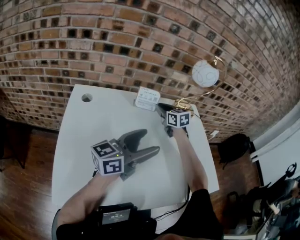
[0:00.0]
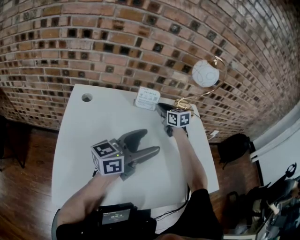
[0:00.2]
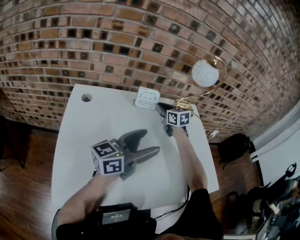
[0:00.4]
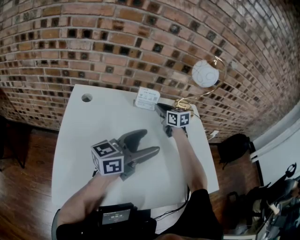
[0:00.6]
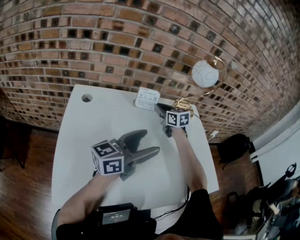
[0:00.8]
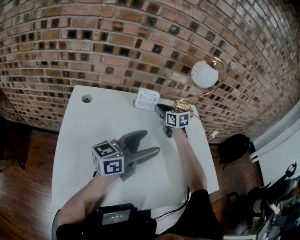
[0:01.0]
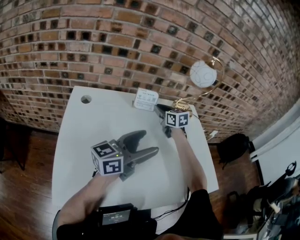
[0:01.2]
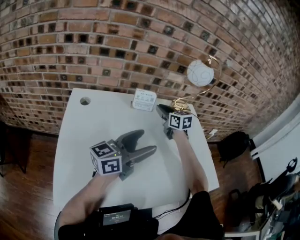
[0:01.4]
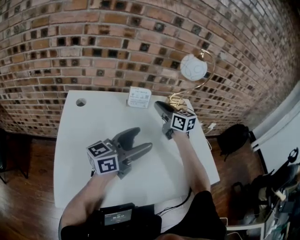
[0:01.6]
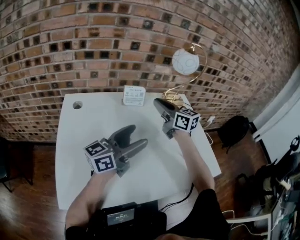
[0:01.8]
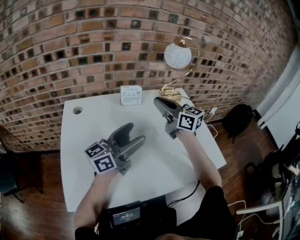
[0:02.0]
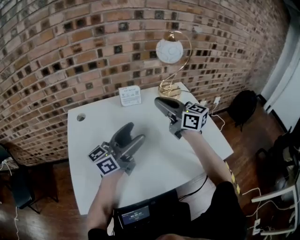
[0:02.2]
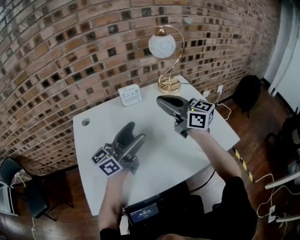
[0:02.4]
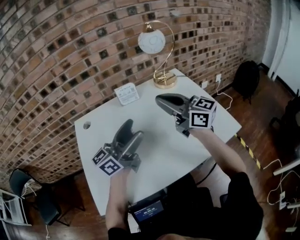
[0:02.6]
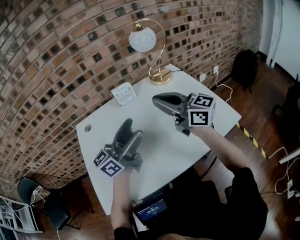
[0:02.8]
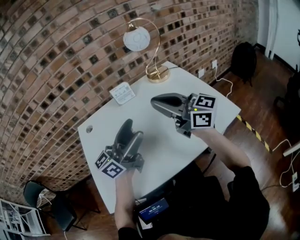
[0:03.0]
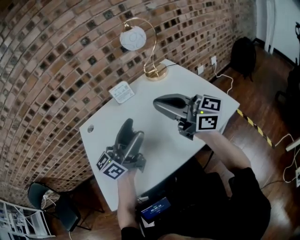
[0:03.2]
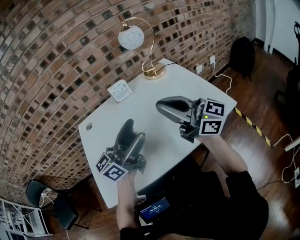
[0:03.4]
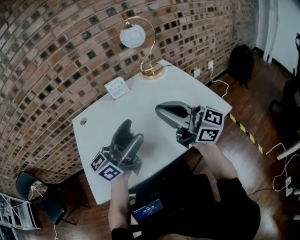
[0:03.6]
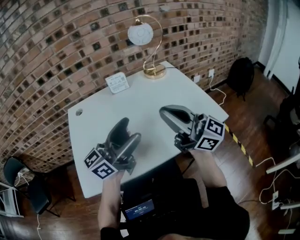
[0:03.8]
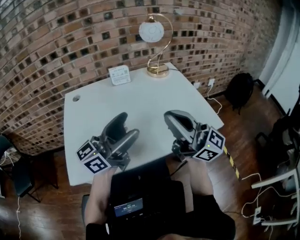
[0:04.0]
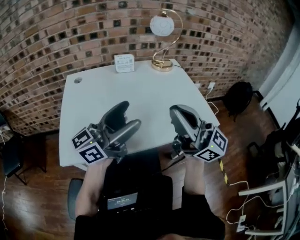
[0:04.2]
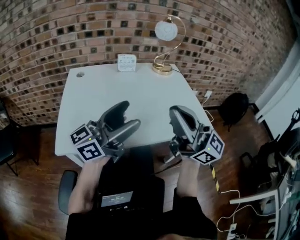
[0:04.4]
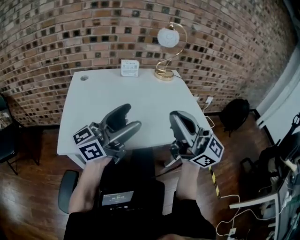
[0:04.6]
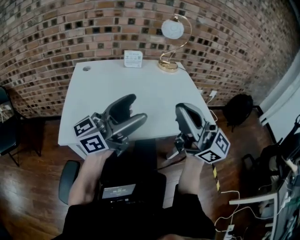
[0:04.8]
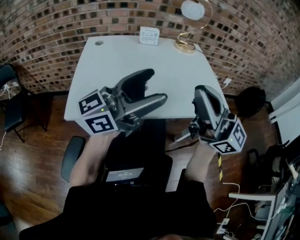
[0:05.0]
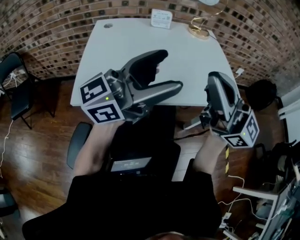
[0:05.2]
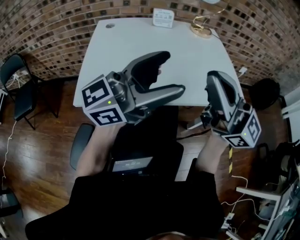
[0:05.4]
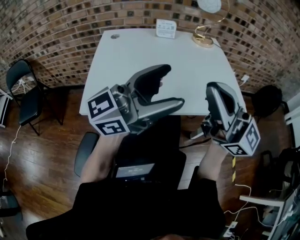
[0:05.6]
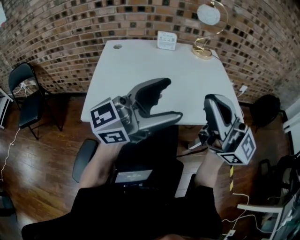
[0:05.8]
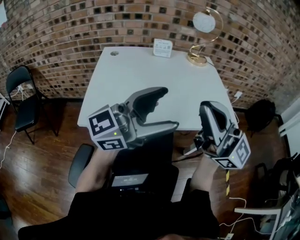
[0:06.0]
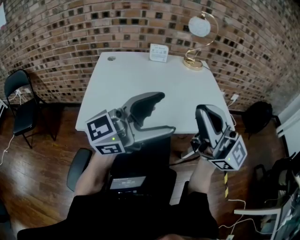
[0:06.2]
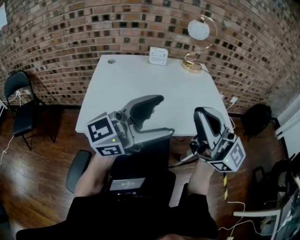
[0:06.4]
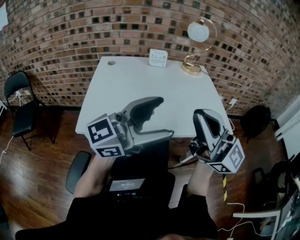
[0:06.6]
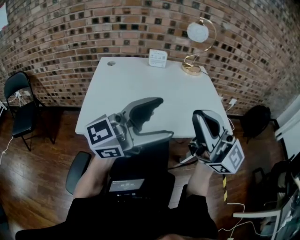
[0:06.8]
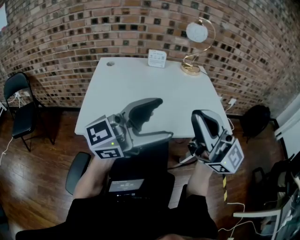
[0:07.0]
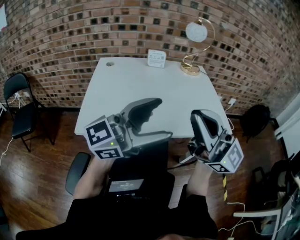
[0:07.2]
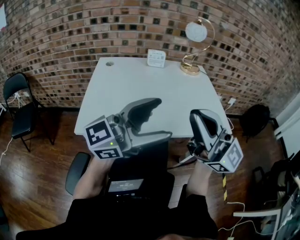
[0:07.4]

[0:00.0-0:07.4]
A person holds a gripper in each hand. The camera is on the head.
0:00.0 to 0:01.4: The grippers stay close to where they were, moving slightly.
0:01.4 to 0:03.0: The left gripper is displaced backward and upward by approximately 10 cm, while the right gripper goes roughly 35 cm backward and upward, and angles its fingers upward, by some 40 degrees.
0:03.0 to 0:04.4: Both grippers travel together backward, some 15 cm.
0:04.4 to 0:06.0: The right gripper shifts by approximately 5 cm. The left gripper ends up roughly 10 cm from where it was.
0:06.0 to 0:07.4: The two grippers keep their place.

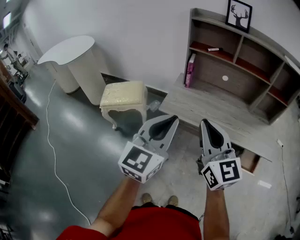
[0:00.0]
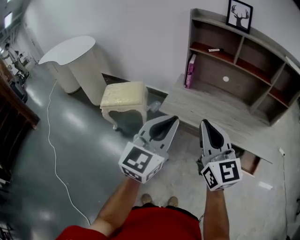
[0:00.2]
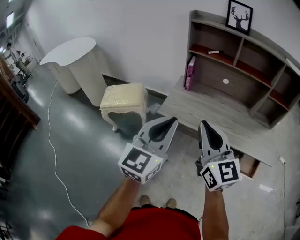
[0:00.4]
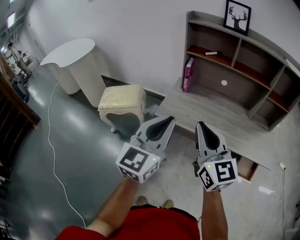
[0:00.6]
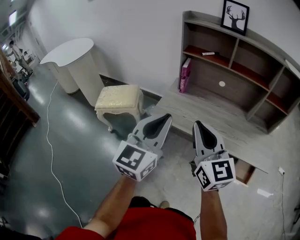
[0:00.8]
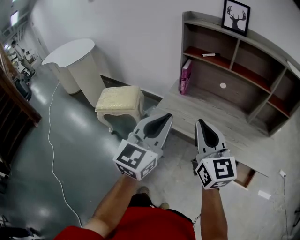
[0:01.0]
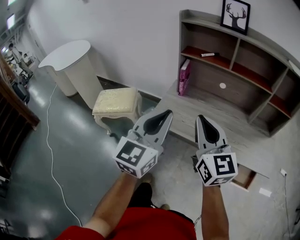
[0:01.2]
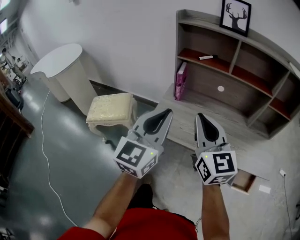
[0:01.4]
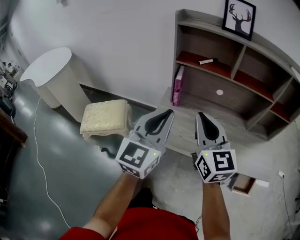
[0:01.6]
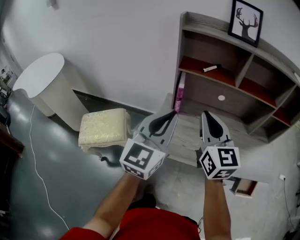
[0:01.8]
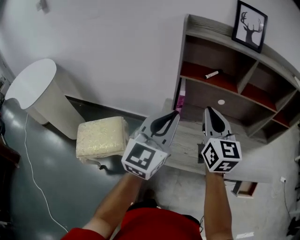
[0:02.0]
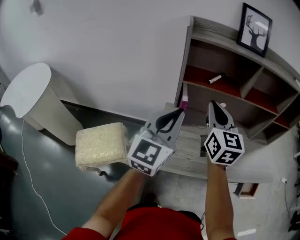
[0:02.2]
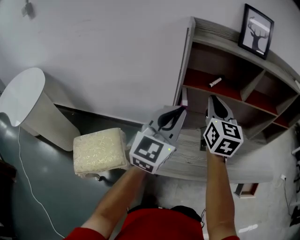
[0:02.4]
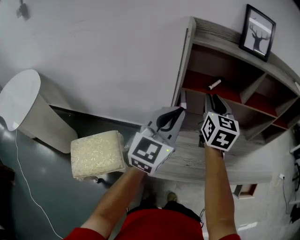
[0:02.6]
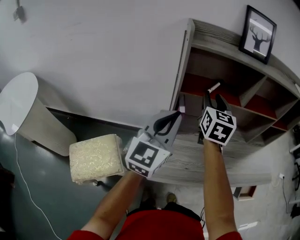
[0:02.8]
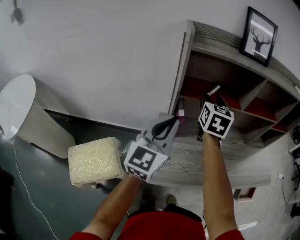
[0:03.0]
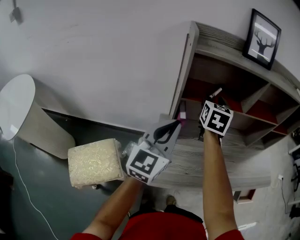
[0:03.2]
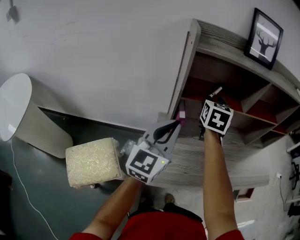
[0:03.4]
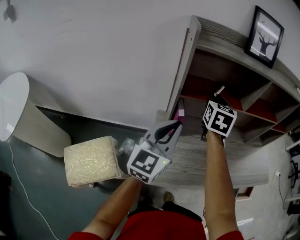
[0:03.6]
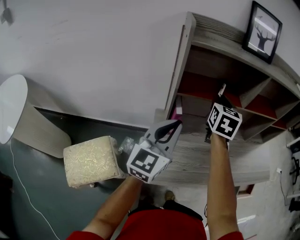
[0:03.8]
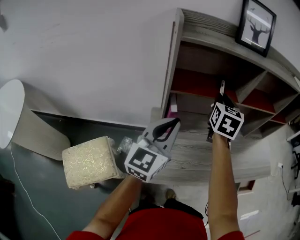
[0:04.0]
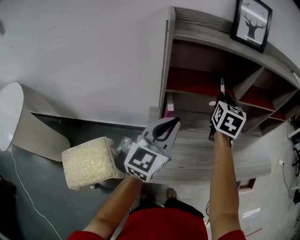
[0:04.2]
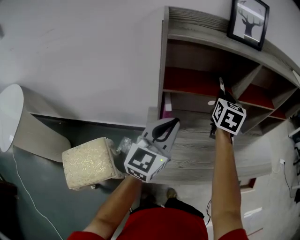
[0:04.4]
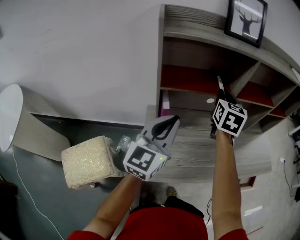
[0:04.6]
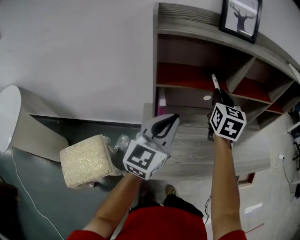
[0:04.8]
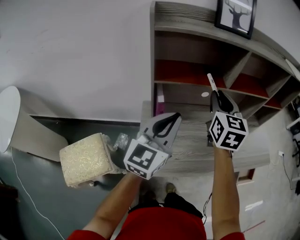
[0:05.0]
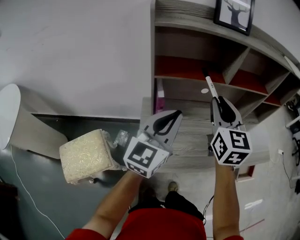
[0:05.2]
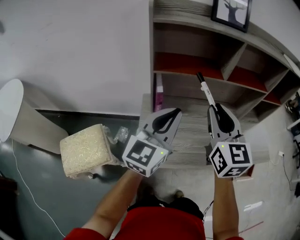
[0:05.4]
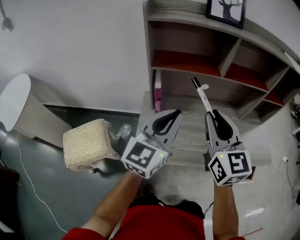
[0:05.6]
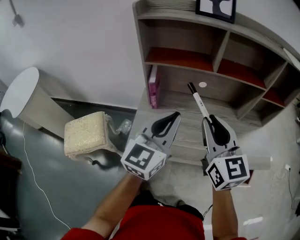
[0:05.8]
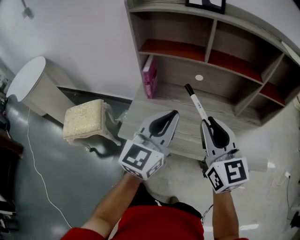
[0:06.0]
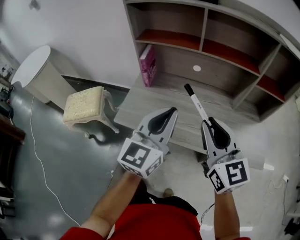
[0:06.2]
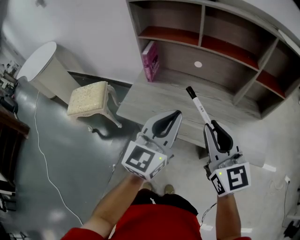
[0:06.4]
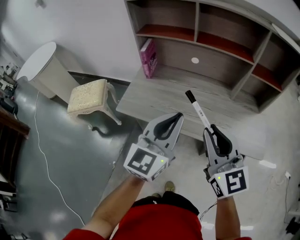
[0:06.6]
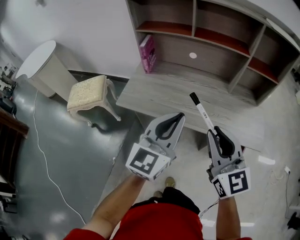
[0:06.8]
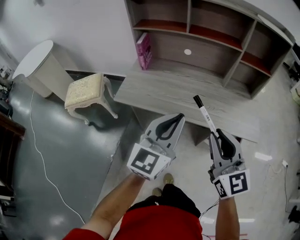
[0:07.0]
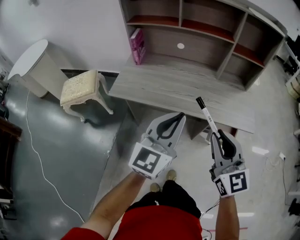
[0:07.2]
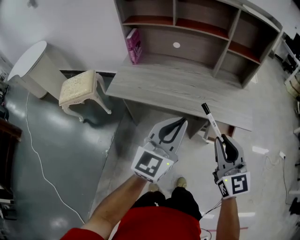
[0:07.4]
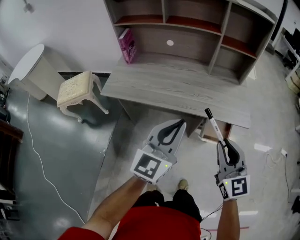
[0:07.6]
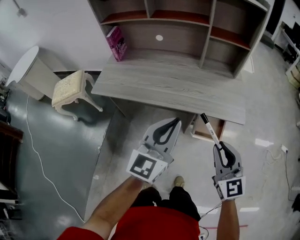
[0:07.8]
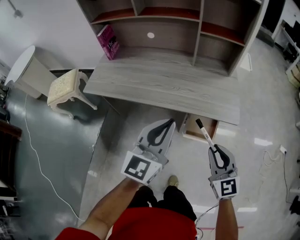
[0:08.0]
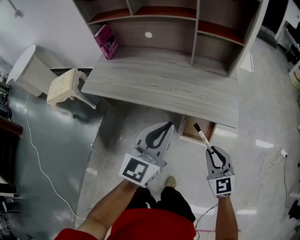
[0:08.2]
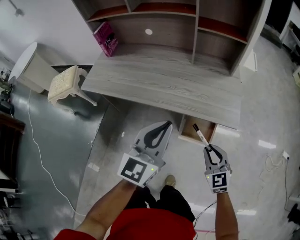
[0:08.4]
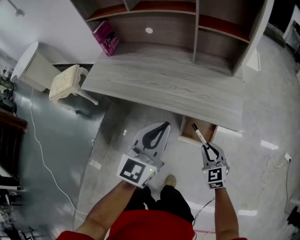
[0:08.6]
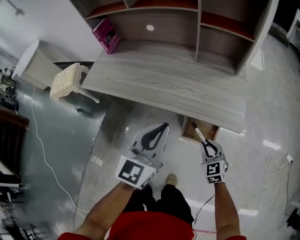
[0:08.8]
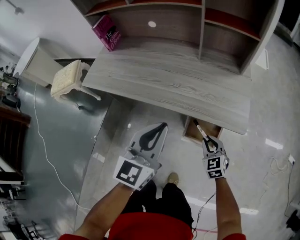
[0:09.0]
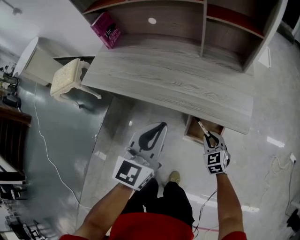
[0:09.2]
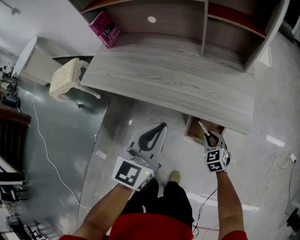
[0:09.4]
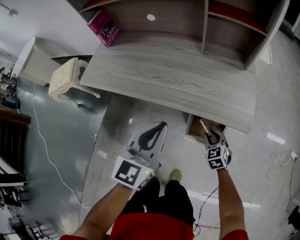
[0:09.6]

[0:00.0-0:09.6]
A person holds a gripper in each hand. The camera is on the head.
0:00.0 to 0:01.6: Both grippers move forward, about 20 cm.
0:01.6 to 0:03.2: The left gripper moves roughly 25 cm. Meanwhile the right gripper ends up roughly 35 cm from where it was, changes its angle by roughly 40 degrees, and opens.
0:03.2 to 0:04.8: The left gripper goes some 5 cm to the right. The right gripper goes some 10 cm to the right, and closes its fingers.
0:04.8 to 0:06.4: The left gripper ends up about 30 cm from where it was; the right gripper moves roughly 40 cm, and swivels approximately 50 degrees.
0:06.4 to 0:08.0: The left gripper travels to the right and backward by approximately 30 cm; the right gripper shifts about 40 cm to the right, backward and downward.
0:08.0 to 0:09.6: The left gripper travels downward and forward by approximately 10 cm. The right gripper is displaced downward and forward by approximately 30 cm, and turns by approximately 30 degrees.

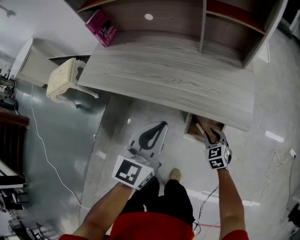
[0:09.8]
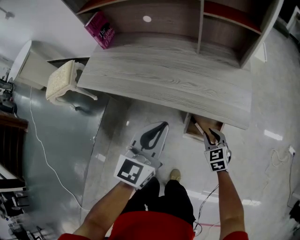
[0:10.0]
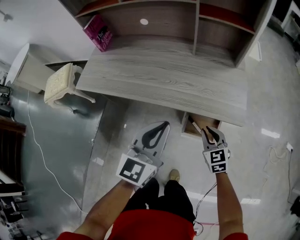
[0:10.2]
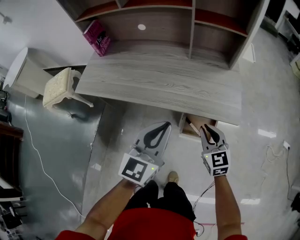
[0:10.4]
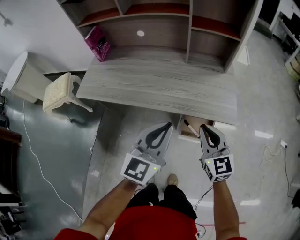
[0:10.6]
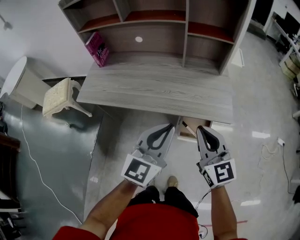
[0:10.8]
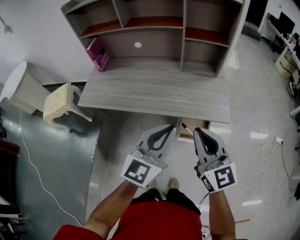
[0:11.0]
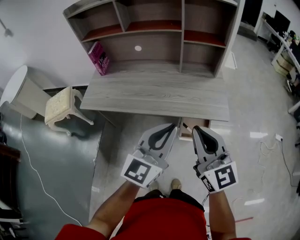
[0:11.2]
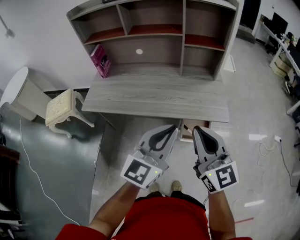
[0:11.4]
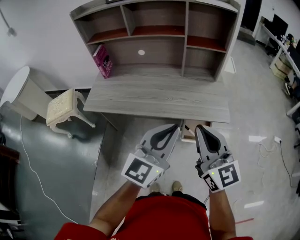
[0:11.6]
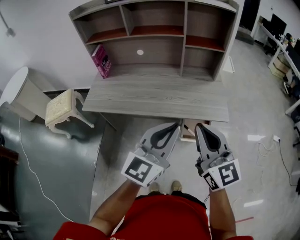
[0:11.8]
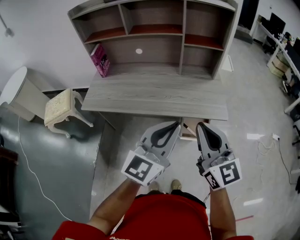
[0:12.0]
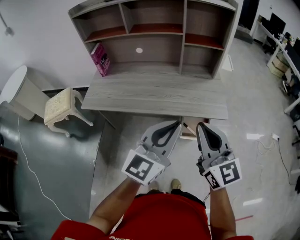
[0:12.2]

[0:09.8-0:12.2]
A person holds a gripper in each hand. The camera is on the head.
0:09.8 to 0:11.0: The right gripper is displaced upward by about 40 cm, points its fingers about 40 degrees further upward, and closes up. The left gripper shifts about 10 cm upward and backward.
0:11.0 to 0:12.2: Both grippers travel together upward, some 5 cm.

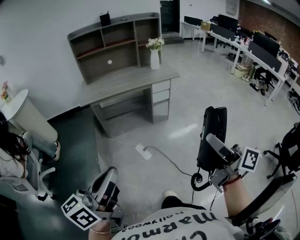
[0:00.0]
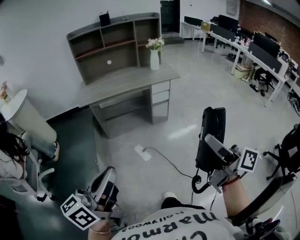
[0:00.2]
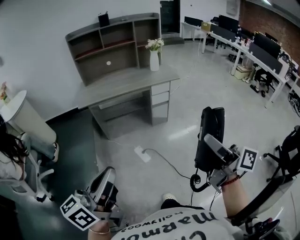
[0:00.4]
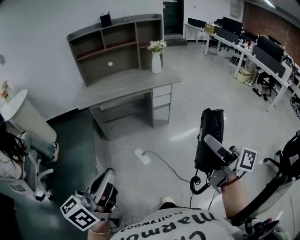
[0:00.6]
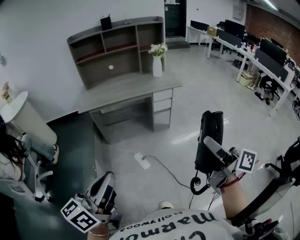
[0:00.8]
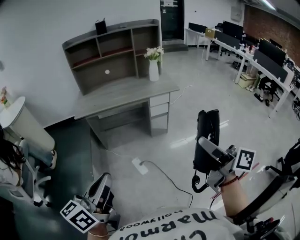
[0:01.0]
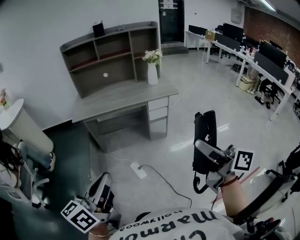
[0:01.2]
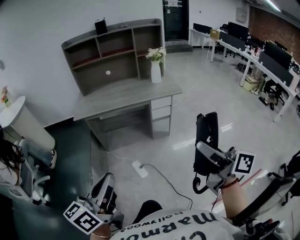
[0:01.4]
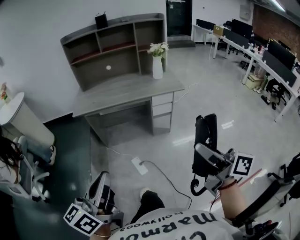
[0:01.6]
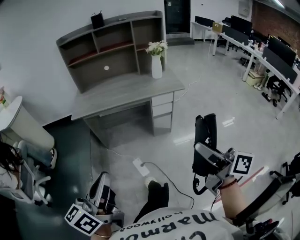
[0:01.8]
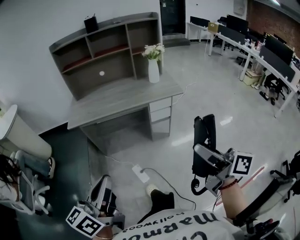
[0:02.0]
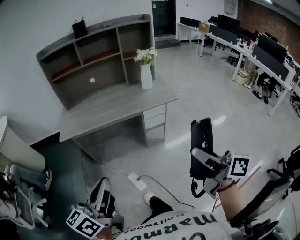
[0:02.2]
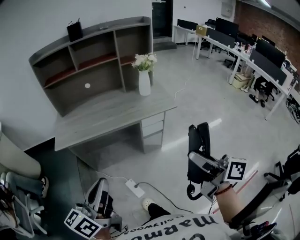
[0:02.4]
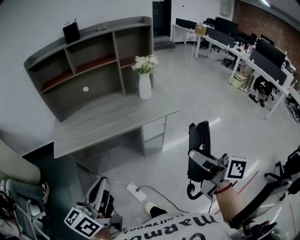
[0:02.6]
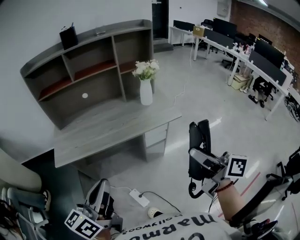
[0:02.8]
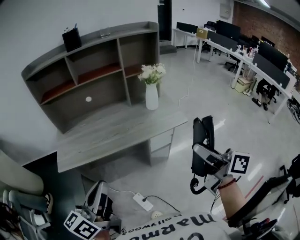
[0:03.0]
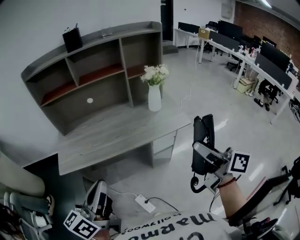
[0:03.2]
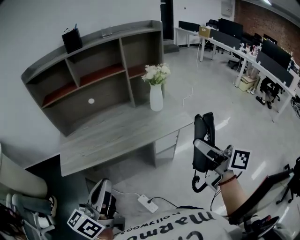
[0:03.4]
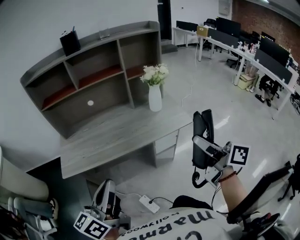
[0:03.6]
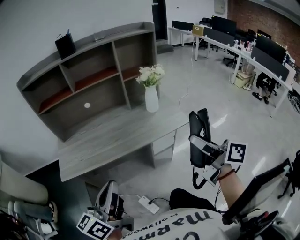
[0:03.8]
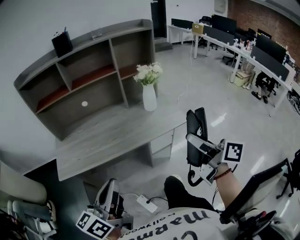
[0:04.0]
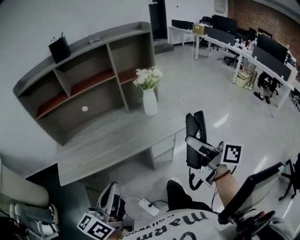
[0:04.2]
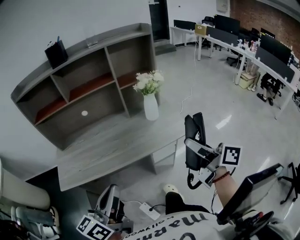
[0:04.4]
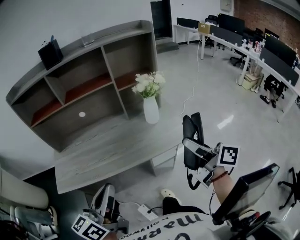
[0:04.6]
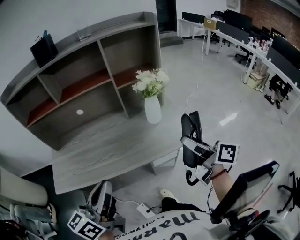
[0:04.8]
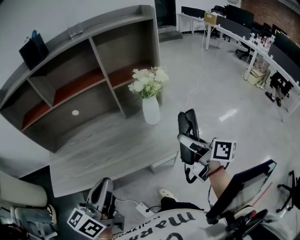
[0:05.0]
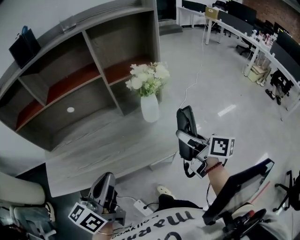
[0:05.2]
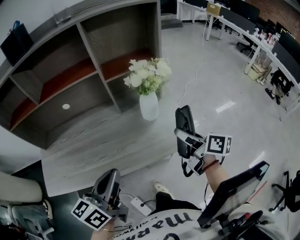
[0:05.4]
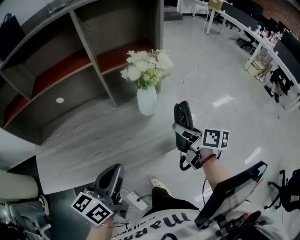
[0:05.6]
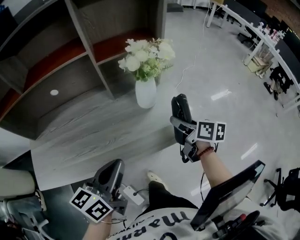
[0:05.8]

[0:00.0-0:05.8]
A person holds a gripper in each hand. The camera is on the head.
0:00.0 to 0:01.4: Both grippers travel together forward and to the right, some 15 cm.
0:01.4 to 0:02.8: Both grippers move forward, about 30 cm.
0:02.8 to 0:04.4: Both grippers move forward, some 15 cm.
0:04.4 to 0:05.8: The right gripper moves forward and downward, about 30 cm, and points its fingers about 30 degrees further downward, while the left gripper heads forward, downward and to the right, covering about 25 cm.
